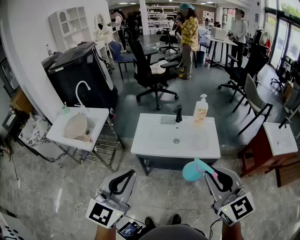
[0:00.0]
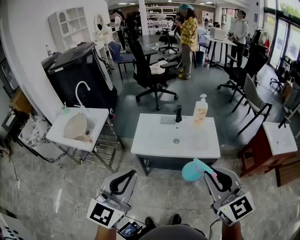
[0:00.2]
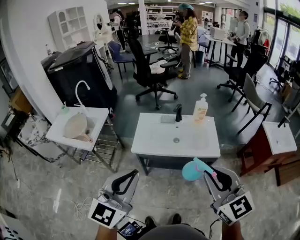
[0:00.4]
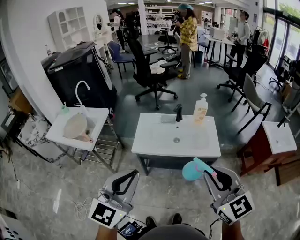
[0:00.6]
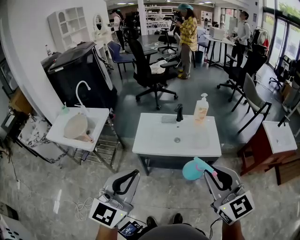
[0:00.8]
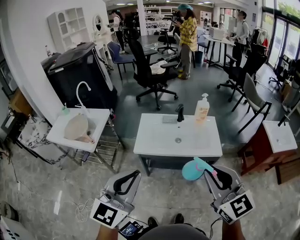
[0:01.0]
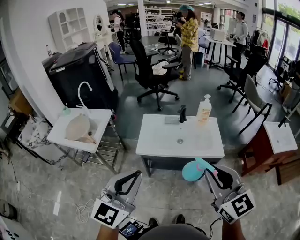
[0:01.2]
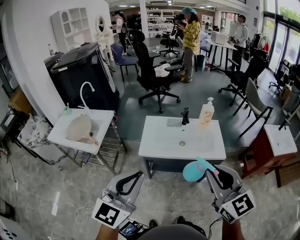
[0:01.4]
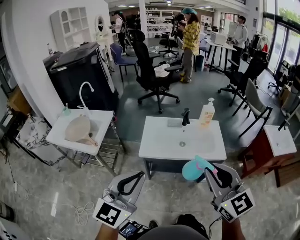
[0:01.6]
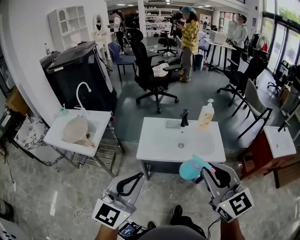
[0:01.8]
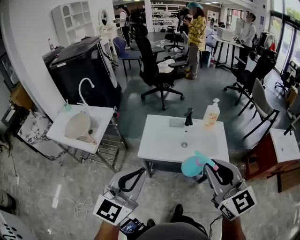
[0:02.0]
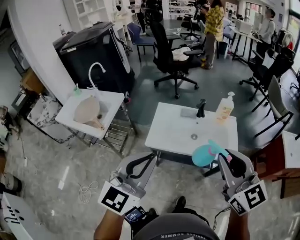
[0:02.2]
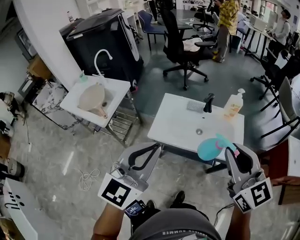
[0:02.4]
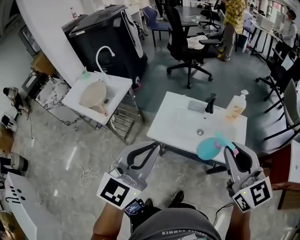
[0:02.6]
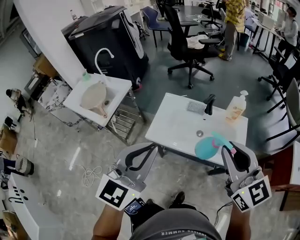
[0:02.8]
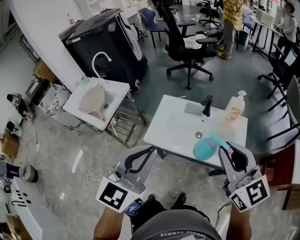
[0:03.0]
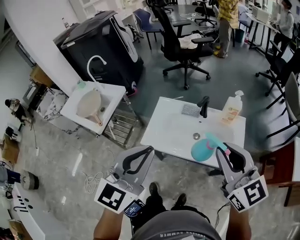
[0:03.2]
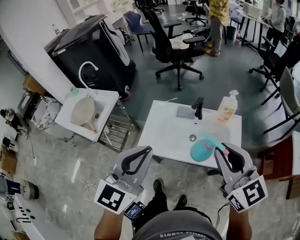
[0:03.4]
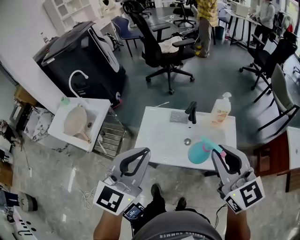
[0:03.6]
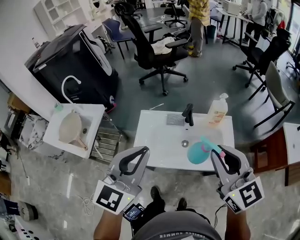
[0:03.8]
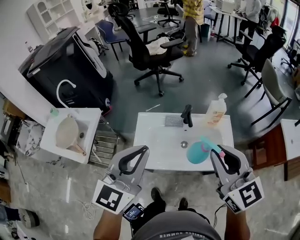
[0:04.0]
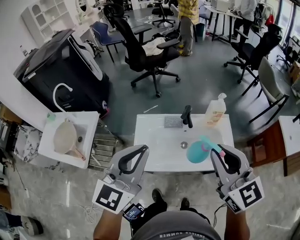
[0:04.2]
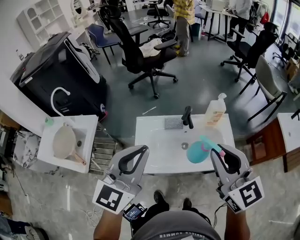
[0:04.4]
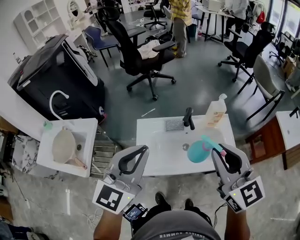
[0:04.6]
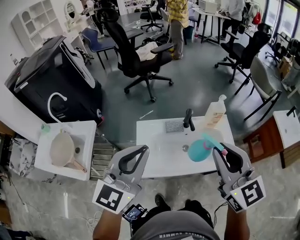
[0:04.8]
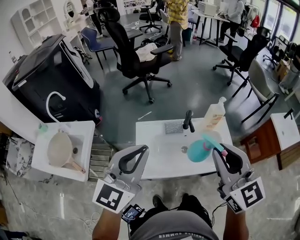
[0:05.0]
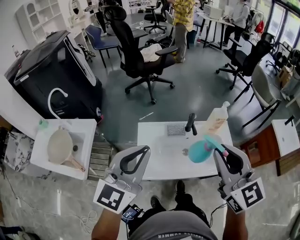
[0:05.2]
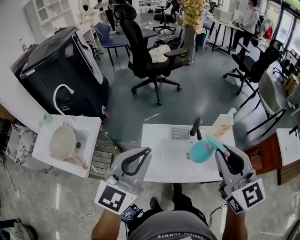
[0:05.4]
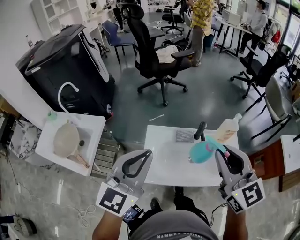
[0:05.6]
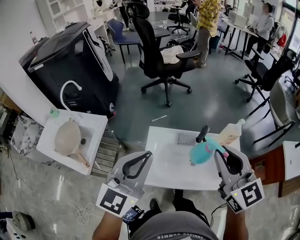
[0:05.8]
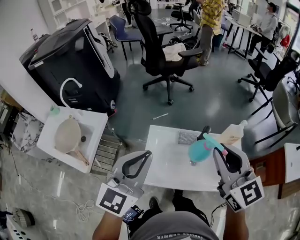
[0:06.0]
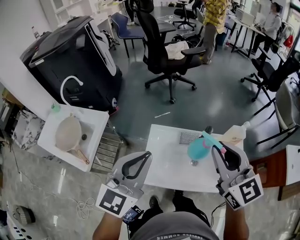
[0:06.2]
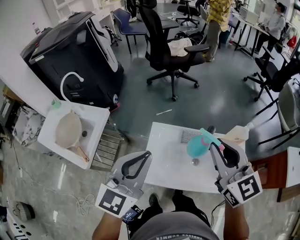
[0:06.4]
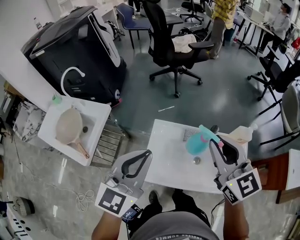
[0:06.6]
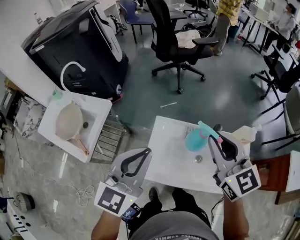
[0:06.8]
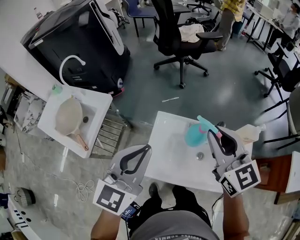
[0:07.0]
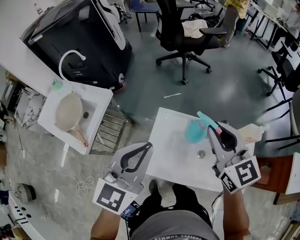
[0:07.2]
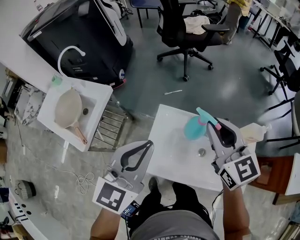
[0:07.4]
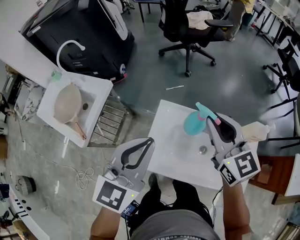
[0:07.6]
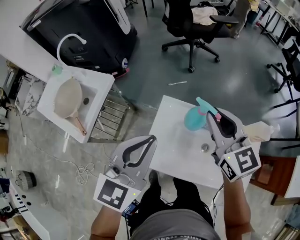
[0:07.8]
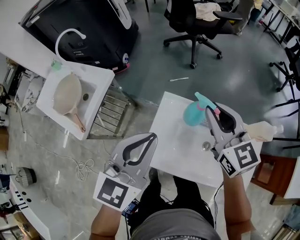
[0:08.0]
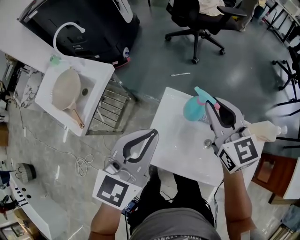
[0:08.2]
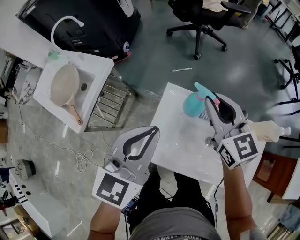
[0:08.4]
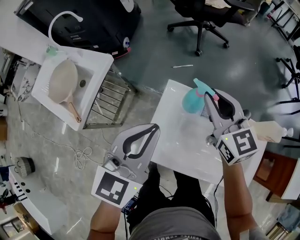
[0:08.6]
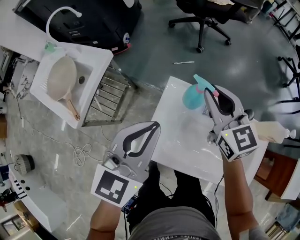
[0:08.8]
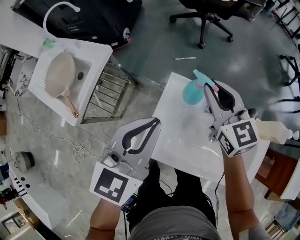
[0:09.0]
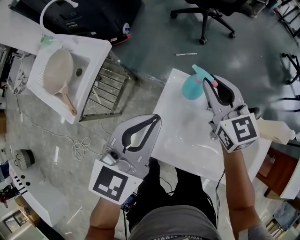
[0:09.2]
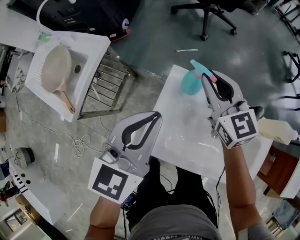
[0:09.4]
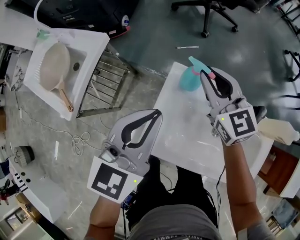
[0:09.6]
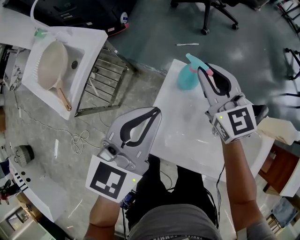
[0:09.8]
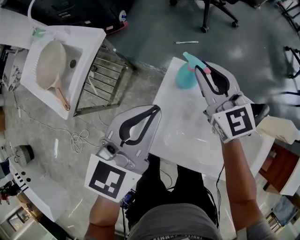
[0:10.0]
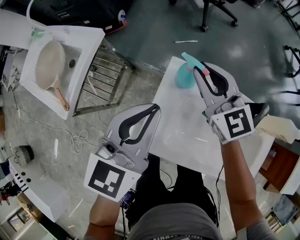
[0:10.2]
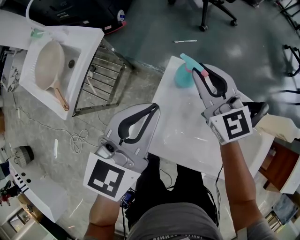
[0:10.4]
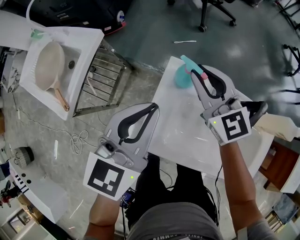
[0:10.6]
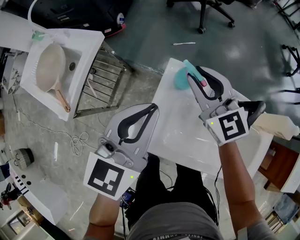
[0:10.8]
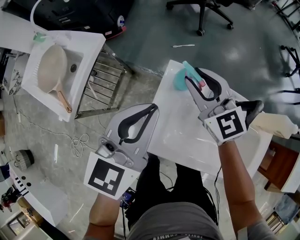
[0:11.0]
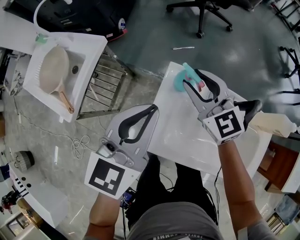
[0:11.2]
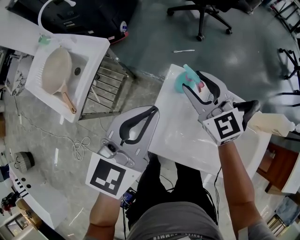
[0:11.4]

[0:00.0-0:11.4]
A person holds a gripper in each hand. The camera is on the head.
0:00.0 to 0:01.4: Both grippers travel together to the left, roughly 5 cm.
0:01.4 to 0:02.8: The left gripper shifts approximately 20 cm forward and to the right; the right gripper is displaced forward by some 20 cm.
0:02.8 to 0:04.2: The left gripper heads forward, covering roughly 15 cm. The right gripper goes about 10 cm forward.
0:04.2 to 0:05.6: The right gripper goes some 10 cm to the left and forward, while the left gripper goes some 10 cm to the left.
0:05.6 to 0:07.2: The right gripper is displaced forward and downward by approximately 20 cm; the left gripper goes roughly 10 cm downward and forward.
0:07.2 to 0:08.6: The left gripper travels downward by approximately 10 cm; the right gripper heads downward, forward and to the left, covering roughly 15 cm.
0:08.6 to 0:10.0: The right gripper moves downward and to the left, roughly 10 cm; the left gripper moves downward, some 10 cm.
0:10.0 to 0:11.4: The right gripper opens.

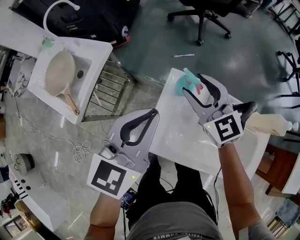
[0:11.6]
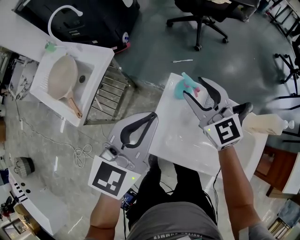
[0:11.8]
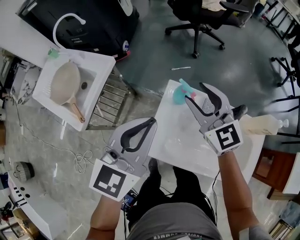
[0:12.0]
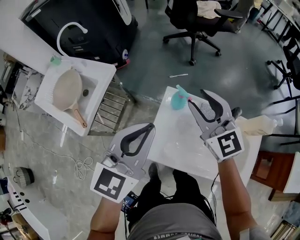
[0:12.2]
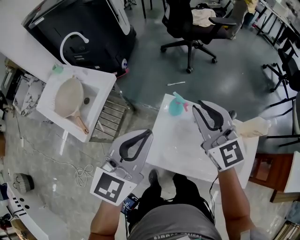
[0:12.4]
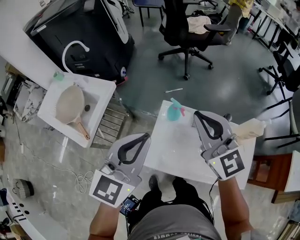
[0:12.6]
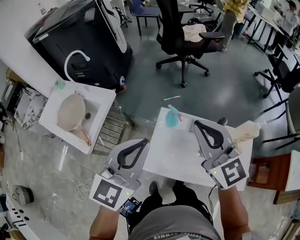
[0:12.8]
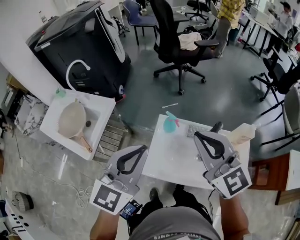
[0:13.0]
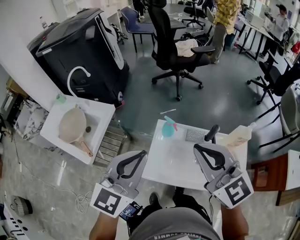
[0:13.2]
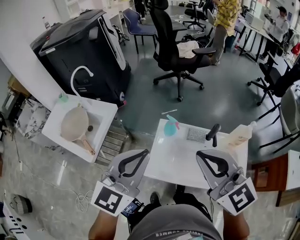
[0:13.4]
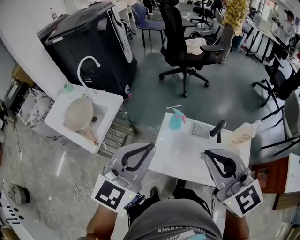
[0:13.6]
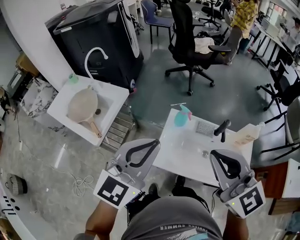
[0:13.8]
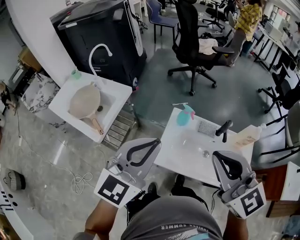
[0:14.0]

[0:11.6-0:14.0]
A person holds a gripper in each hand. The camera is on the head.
0:11.6 to 0:12.8: The left gripper goes approximately 15 cm upward and backward, while the right gripper moves upward and backward, approximately 25 cm, and closes.
0:12.8 to 0:14.0: The right gripper heads backward, covering roughly 15 cm. The left gripper heads backward, covering approximately 10 cm.

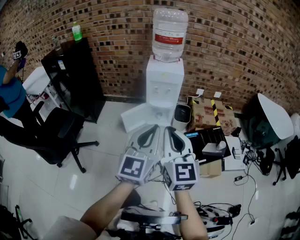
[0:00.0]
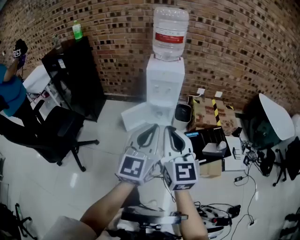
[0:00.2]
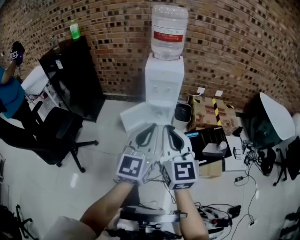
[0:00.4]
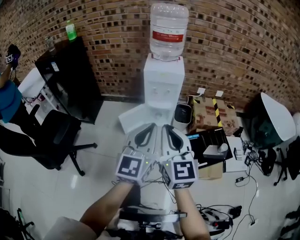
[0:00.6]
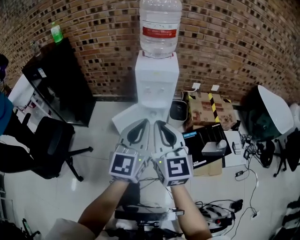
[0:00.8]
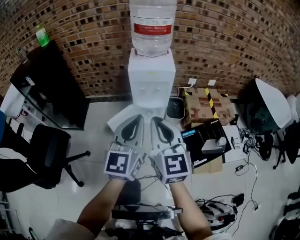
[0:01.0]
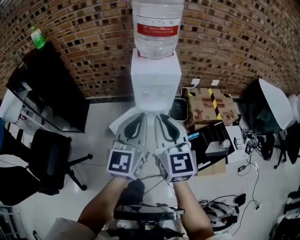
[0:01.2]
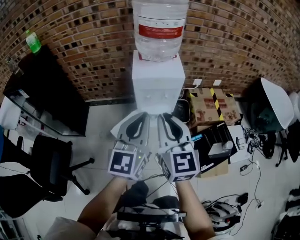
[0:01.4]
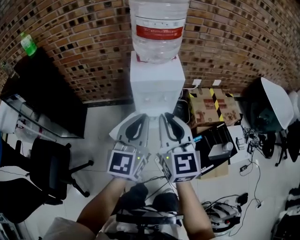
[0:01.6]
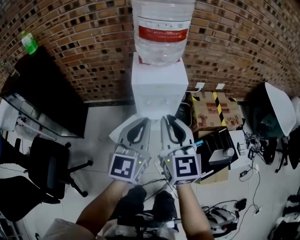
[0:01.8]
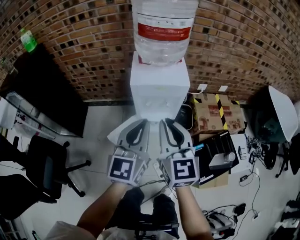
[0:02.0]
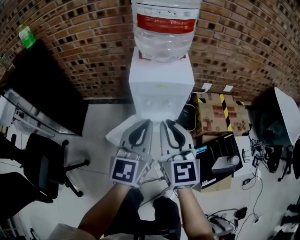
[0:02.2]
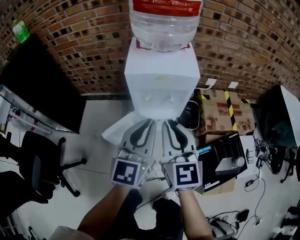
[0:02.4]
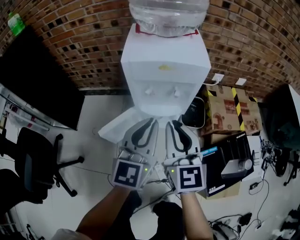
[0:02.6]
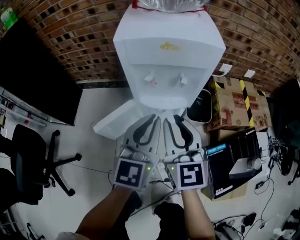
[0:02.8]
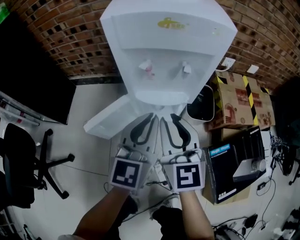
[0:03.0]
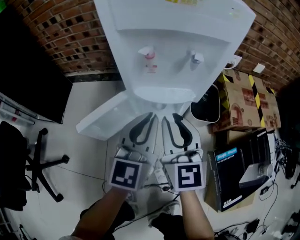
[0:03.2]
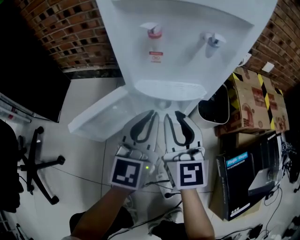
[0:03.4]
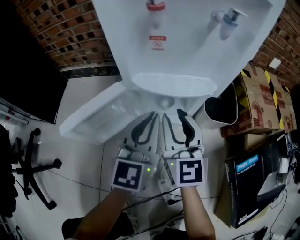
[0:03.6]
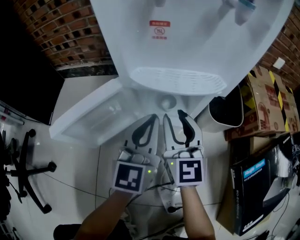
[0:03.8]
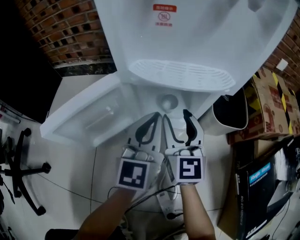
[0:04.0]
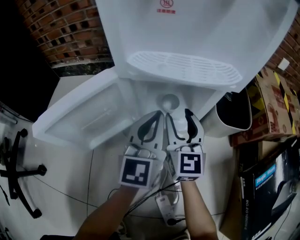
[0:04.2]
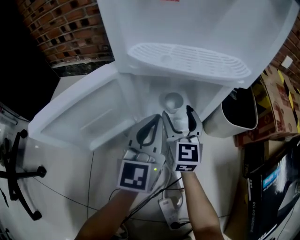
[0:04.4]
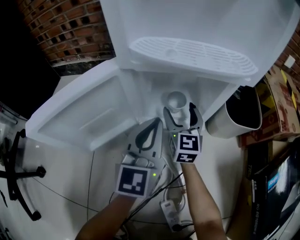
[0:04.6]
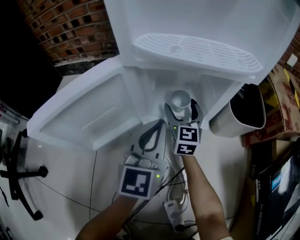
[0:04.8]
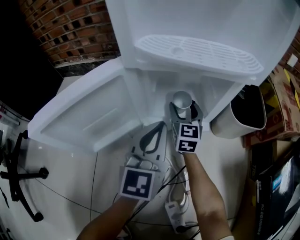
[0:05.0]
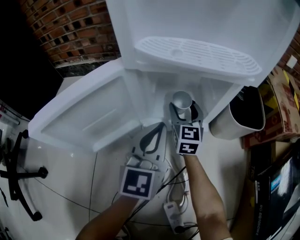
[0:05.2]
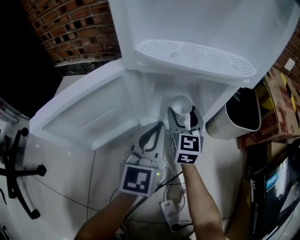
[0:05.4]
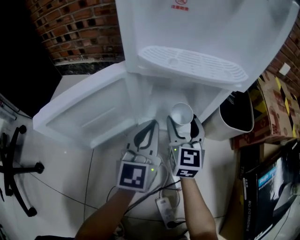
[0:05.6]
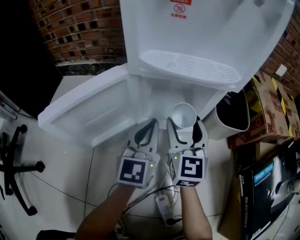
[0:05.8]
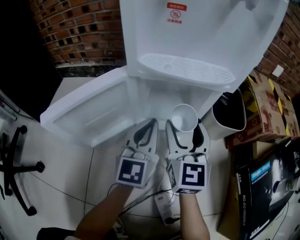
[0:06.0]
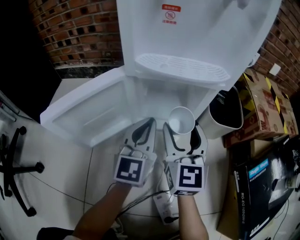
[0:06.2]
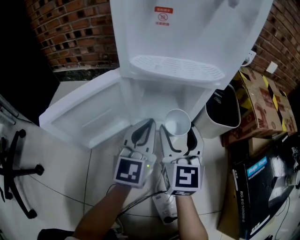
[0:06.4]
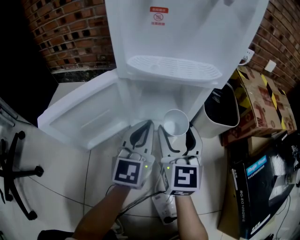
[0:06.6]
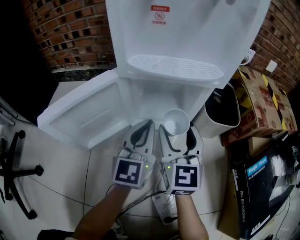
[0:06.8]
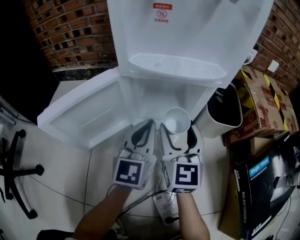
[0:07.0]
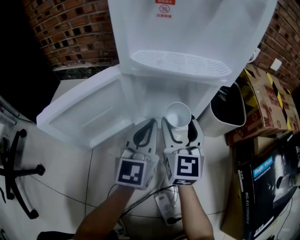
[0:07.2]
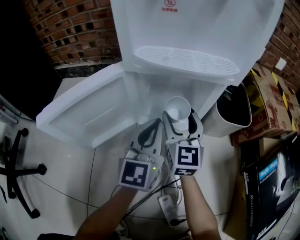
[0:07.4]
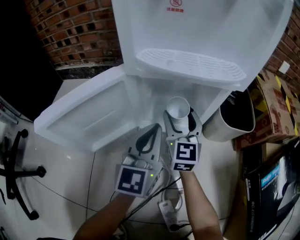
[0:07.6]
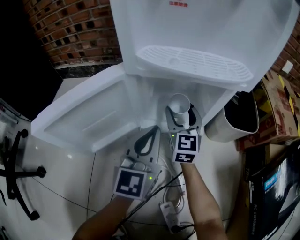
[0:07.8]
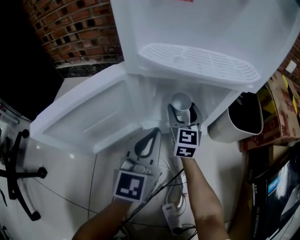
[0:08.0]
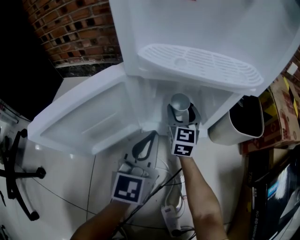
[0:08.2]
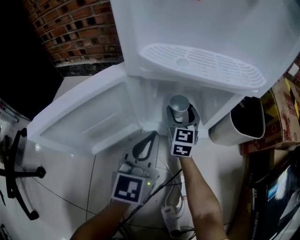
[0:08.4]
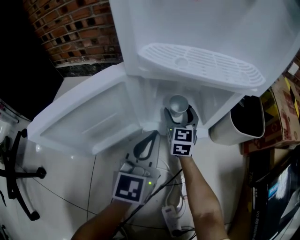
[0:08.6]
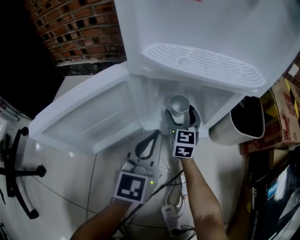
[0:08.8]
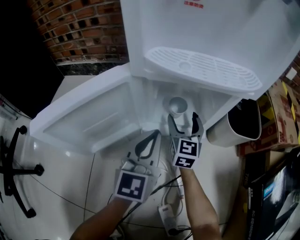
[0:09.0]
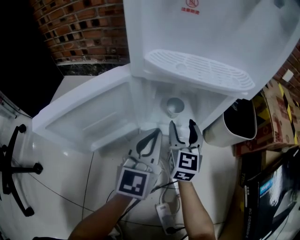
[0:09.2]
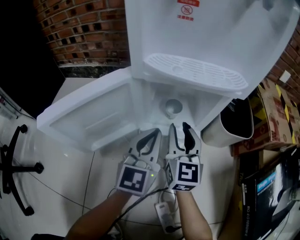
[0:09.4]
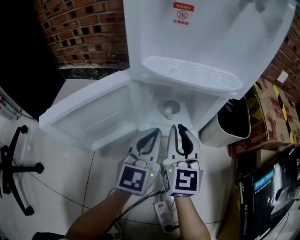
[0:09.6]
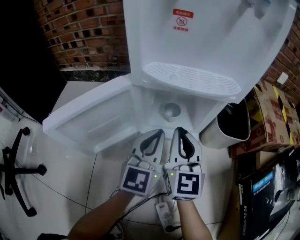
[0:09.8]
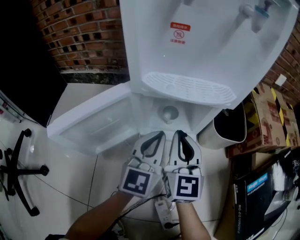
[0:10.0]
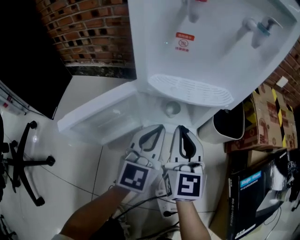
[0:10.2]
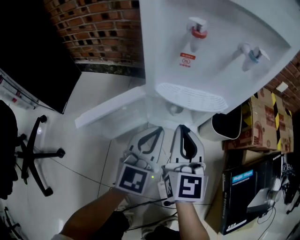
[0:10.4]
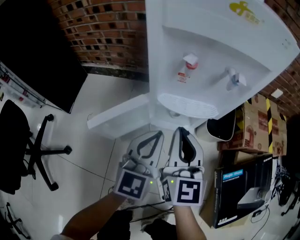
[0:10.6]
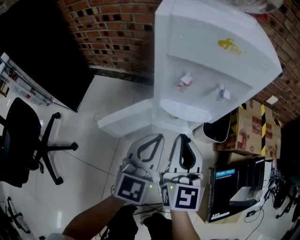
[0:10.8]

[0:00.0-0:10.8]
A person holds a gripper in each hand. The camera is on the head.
0:00.0 to 0:01.6: The two grippers go approximately 35 cm forward.
0:01.6 to 0:03.0: Both grippers move downward, roughly 35 cm.
0:03.0 to 0:04.6: The right gripper shifts some 50 cm downward and forward, and opens, while the left gripper heads downward, covering roughly 35 cm.
0:04.6 to 0:06.2: The right gripper is displaced upward and backward by some 20 cm.
0:06.2 to 0:07.8: The right gripper goes approximately 15 cm forward and downward.
0:09.2 to 0:10.8: The grippers both shift upward by some 35 cm. The right gripper closes.
